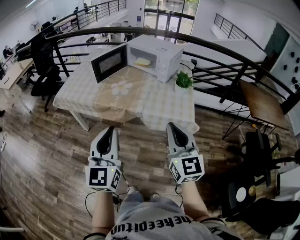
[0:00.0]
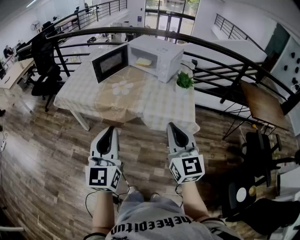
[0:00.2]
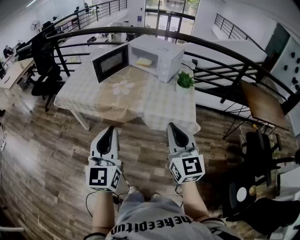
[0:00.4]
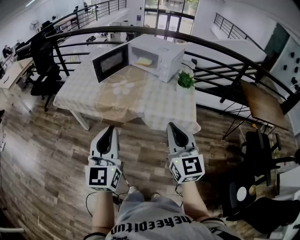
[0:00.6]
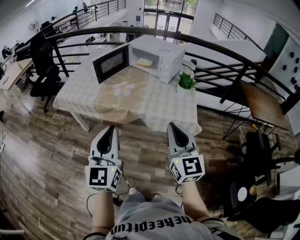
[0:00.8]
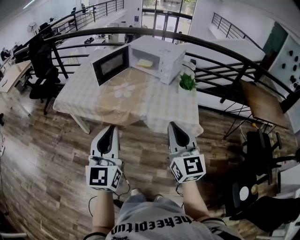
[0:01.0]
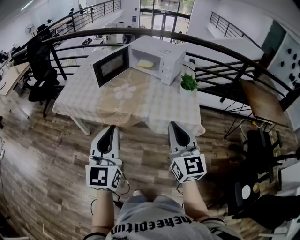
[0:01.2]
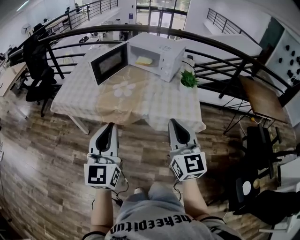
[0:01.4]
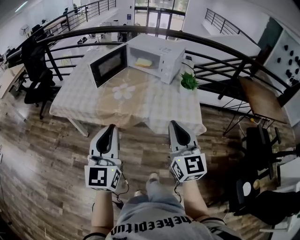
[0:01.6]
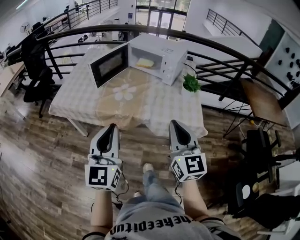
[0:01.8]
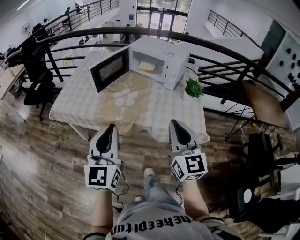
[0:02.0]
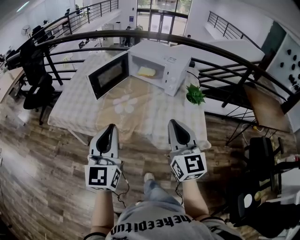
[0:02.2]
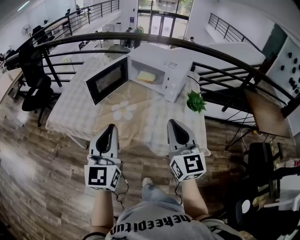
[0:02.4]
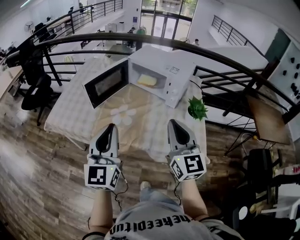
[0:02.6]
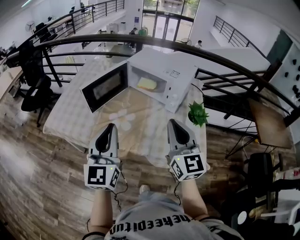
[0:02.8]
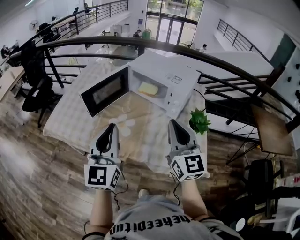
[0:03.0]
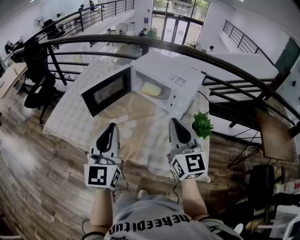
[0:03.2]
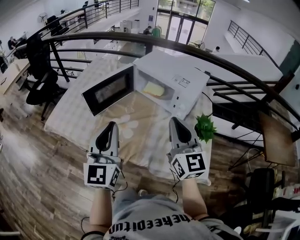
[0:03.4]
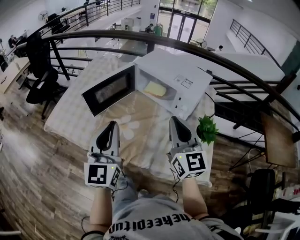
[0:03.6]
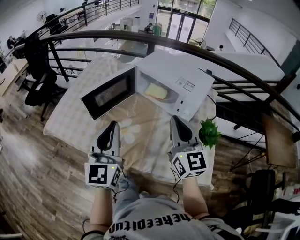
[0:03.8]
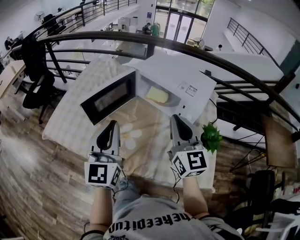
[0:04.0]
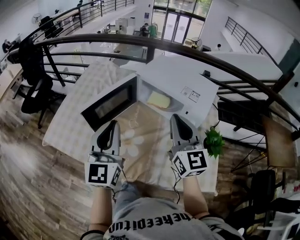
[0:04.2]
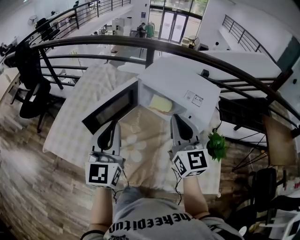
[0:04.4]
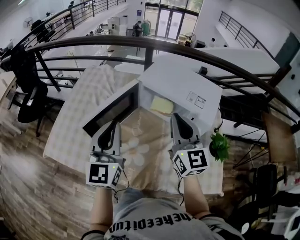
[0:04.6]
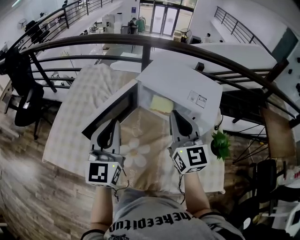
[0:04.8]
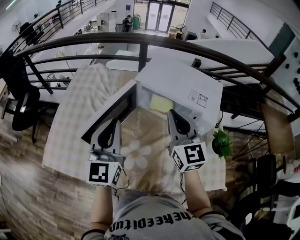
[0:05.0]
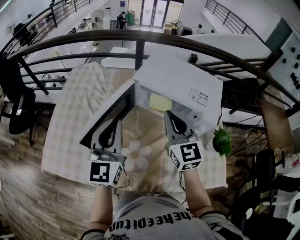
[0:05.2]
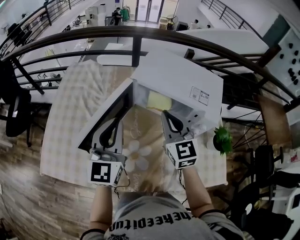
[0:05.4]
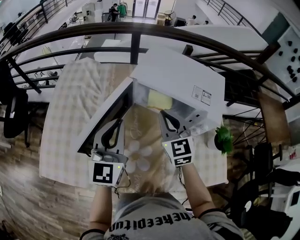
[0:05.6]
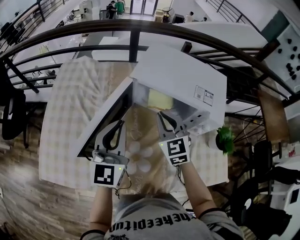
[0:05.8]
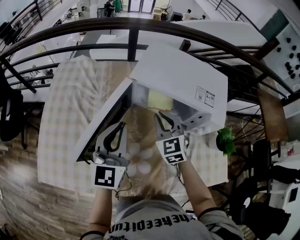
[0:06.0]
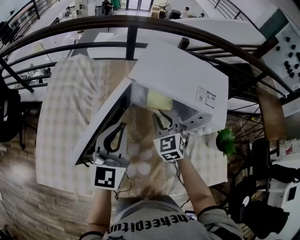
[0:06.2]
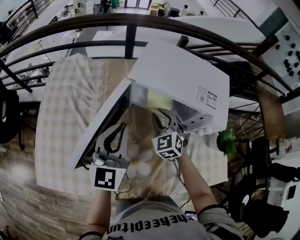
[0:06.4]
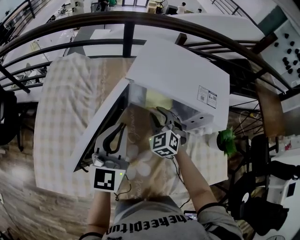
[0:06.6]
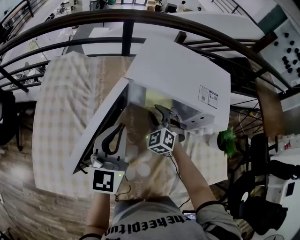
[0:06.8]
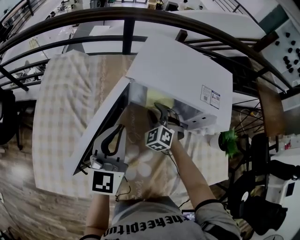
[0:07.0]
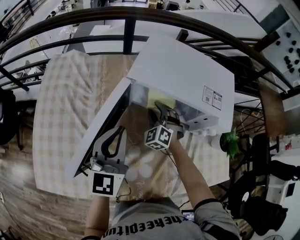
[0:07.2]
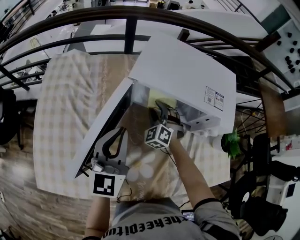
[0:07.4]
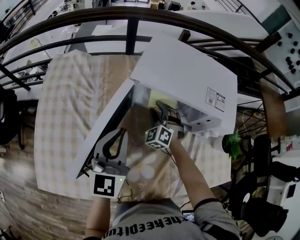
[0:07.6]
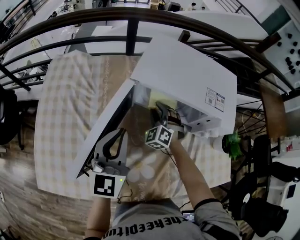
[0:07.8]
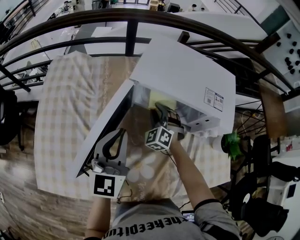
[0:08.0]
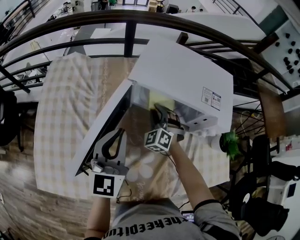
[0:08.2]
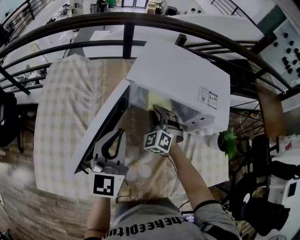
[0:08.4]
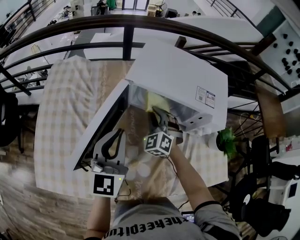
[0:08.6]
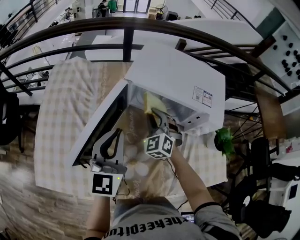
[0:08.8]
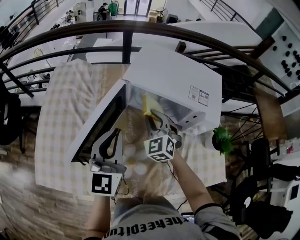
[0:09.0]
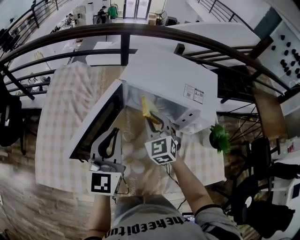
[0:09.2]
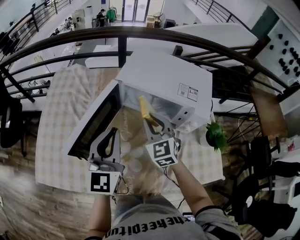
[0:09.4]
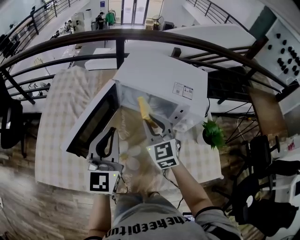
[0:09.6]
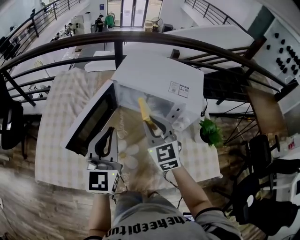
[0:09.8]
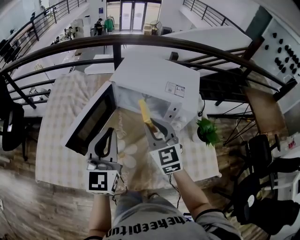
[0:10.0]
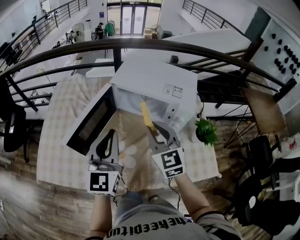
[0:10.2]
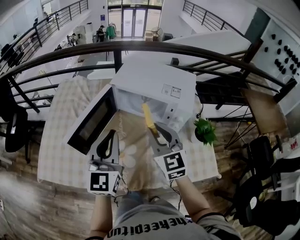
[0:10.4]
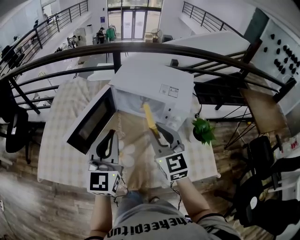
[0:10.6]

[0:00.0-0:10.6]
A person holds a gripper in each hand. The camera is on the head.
0:00.0 to 0:01.6: Both grippers travel together forward and to the left, roughly 10 cm.
0:01.6 to 0:03.0: Both grippers move forward, about 30 cm.
0:03.0 to 0:04.6: The two grippers go approximately 25 cm forward.
0:04.6 to 0:06.0: The left gripper heads forward and downward, covering some 15 cm, while the right gripper shifts some 20 cm downward and forward, and changes its angle by some 40 degrees.
0:06.0 to 0:07.6: The right gripper shifts about 15 cm downward and forward, changes its angle by about 30 degrees, and opens up.
0:07.6 to 0:09.0: The left gripper ends up about 5 cm from where it was. Meanwhile the right gripper goes approximately 15 cm upward and backward, and closes up.
0:09.0 to 0:10.6: The right gripper goes about 25 cm backward, upward and to the right, and changes its angle by roughly 30 degrees. The left gripper moves backward, upward and to the right, about 15 cm.

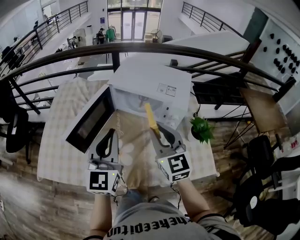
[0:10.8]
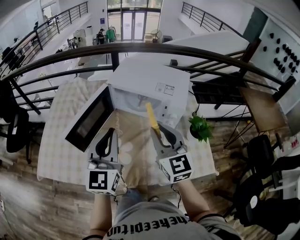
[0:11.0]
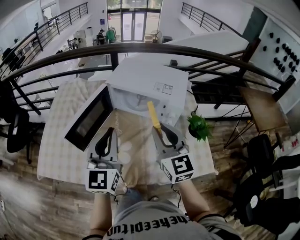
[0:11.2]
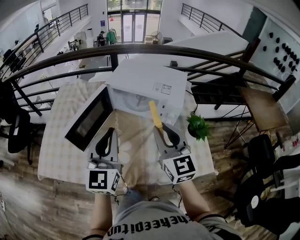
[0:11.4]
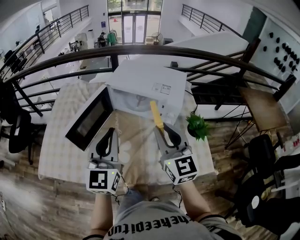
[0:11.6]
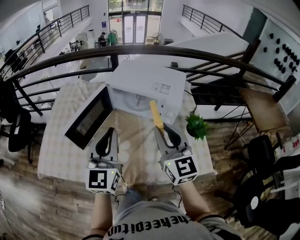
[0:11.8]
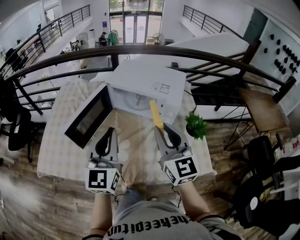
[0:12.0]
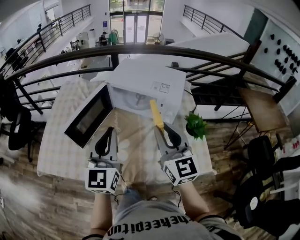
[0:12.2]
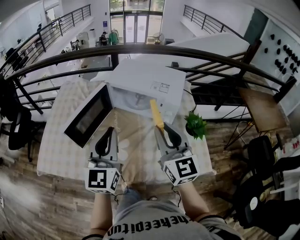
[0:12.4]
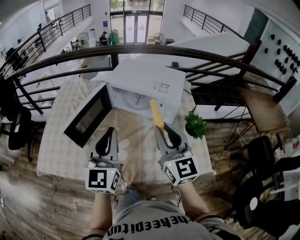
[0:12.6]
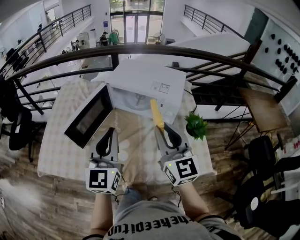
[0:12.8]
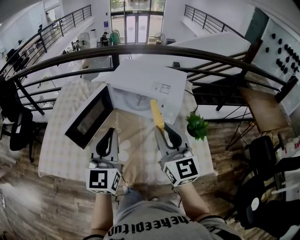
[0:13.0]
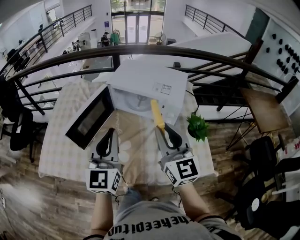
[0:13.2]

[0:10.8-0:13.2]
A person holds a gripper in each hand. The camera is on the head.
0:10.8 to 0:12.0: The right gripper heads backward, covering some 5 cm.
0:12.0 to 0:13.2: The two grippers keep their place.

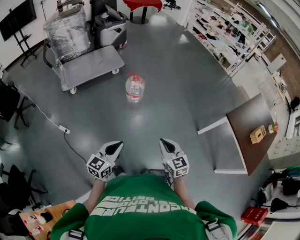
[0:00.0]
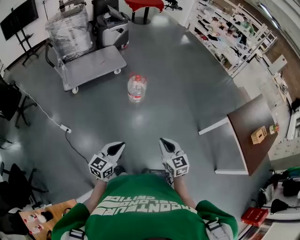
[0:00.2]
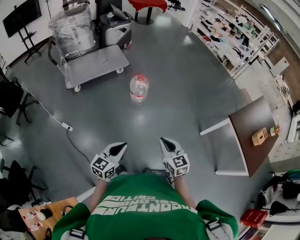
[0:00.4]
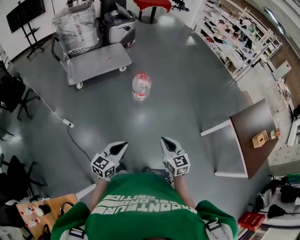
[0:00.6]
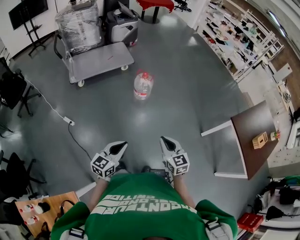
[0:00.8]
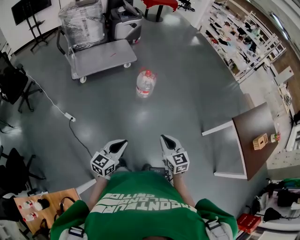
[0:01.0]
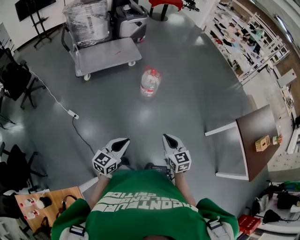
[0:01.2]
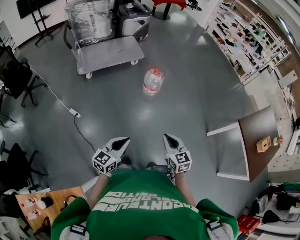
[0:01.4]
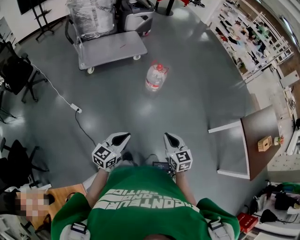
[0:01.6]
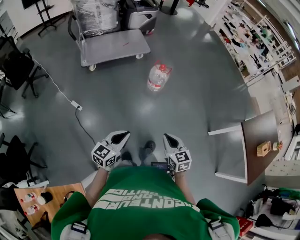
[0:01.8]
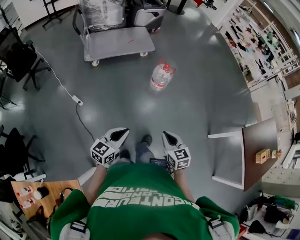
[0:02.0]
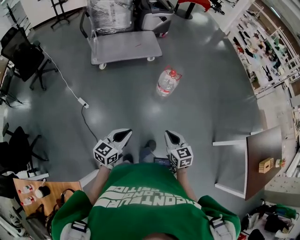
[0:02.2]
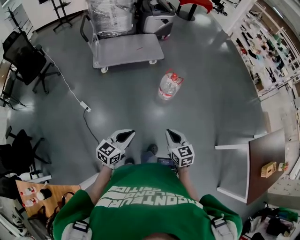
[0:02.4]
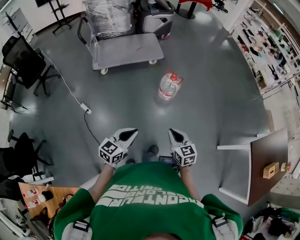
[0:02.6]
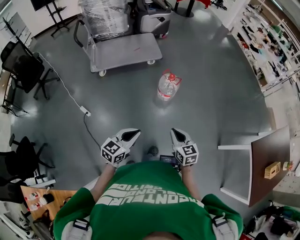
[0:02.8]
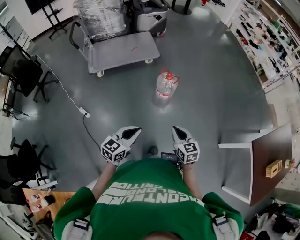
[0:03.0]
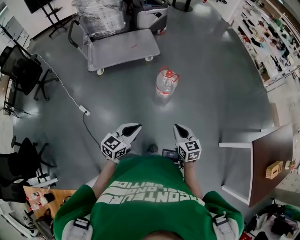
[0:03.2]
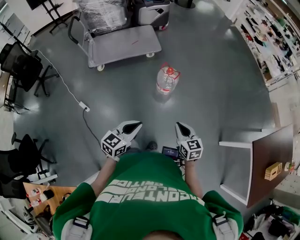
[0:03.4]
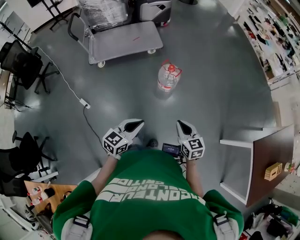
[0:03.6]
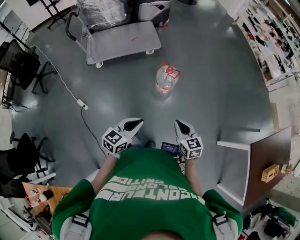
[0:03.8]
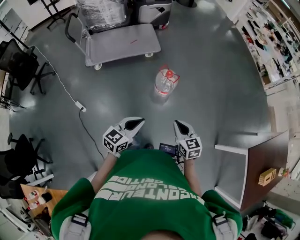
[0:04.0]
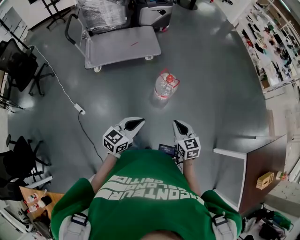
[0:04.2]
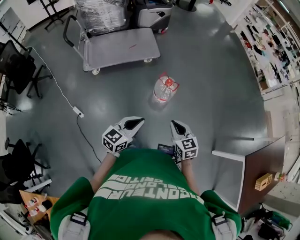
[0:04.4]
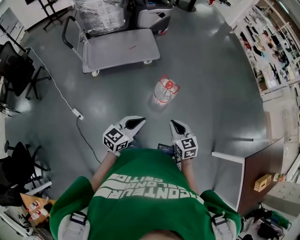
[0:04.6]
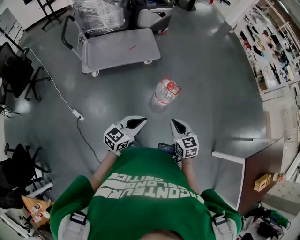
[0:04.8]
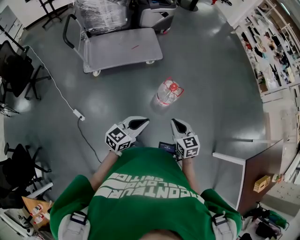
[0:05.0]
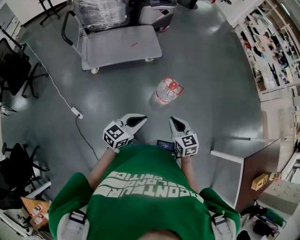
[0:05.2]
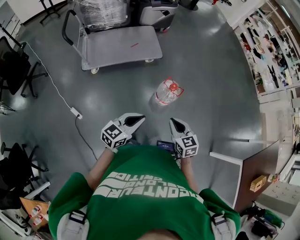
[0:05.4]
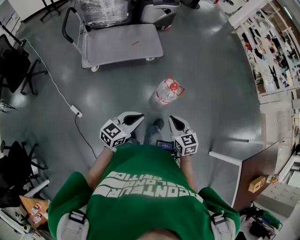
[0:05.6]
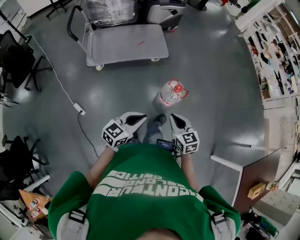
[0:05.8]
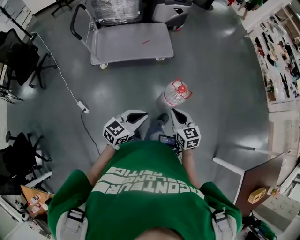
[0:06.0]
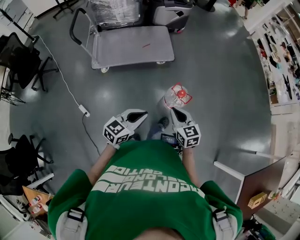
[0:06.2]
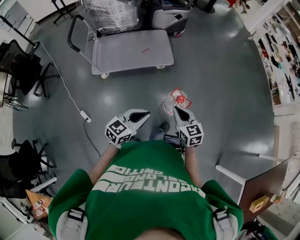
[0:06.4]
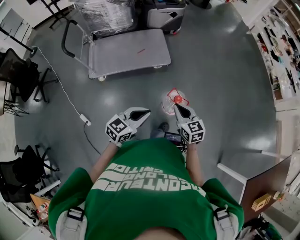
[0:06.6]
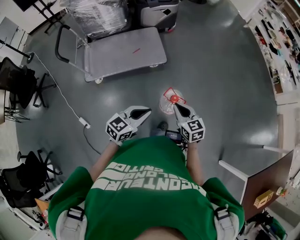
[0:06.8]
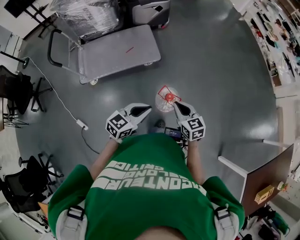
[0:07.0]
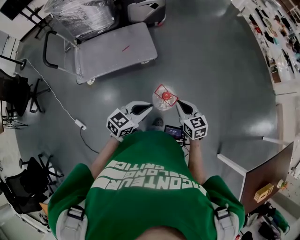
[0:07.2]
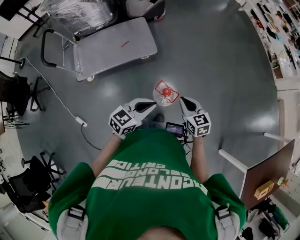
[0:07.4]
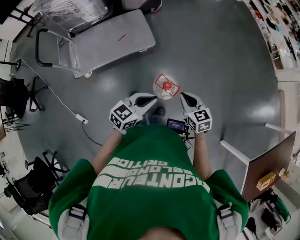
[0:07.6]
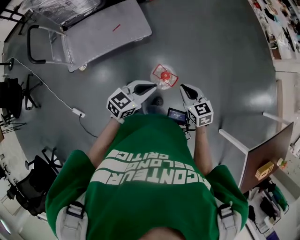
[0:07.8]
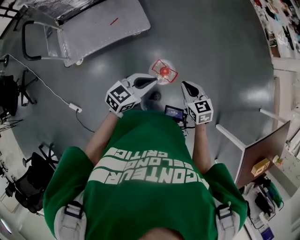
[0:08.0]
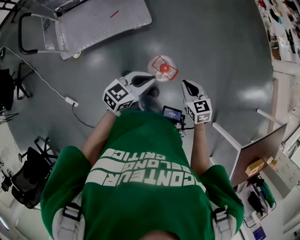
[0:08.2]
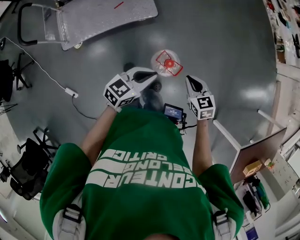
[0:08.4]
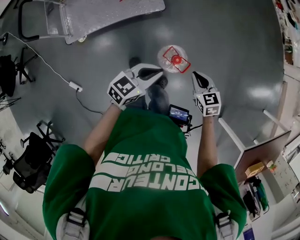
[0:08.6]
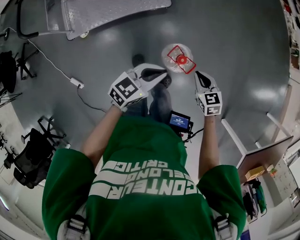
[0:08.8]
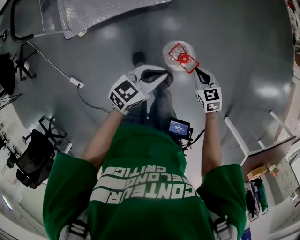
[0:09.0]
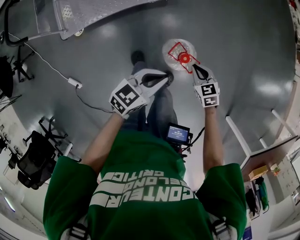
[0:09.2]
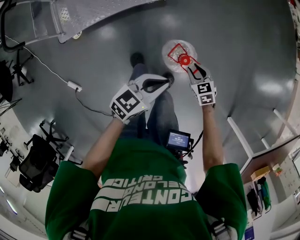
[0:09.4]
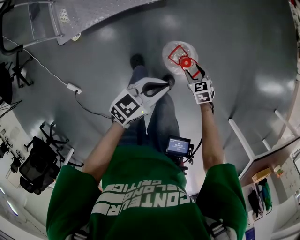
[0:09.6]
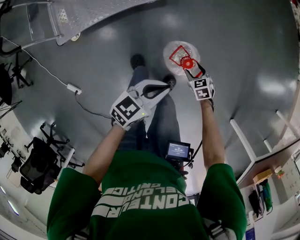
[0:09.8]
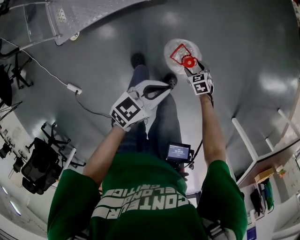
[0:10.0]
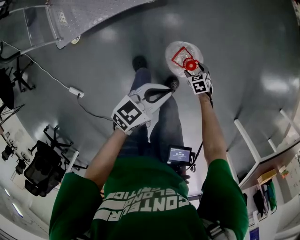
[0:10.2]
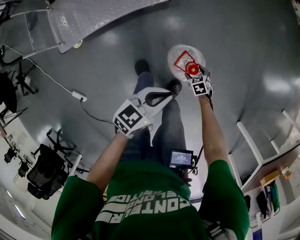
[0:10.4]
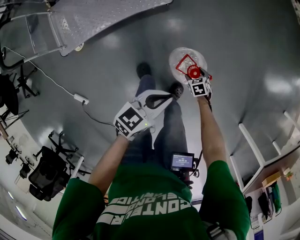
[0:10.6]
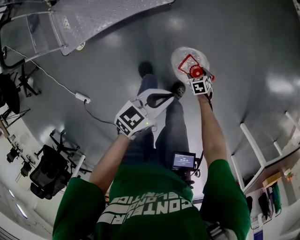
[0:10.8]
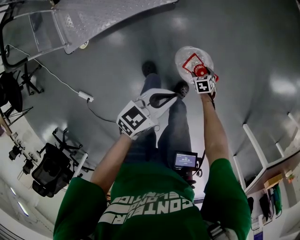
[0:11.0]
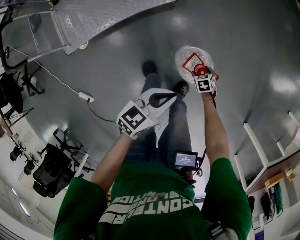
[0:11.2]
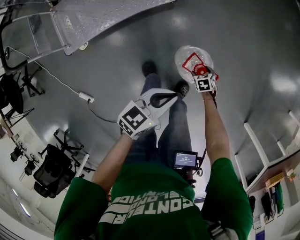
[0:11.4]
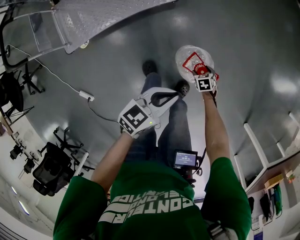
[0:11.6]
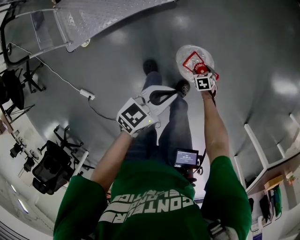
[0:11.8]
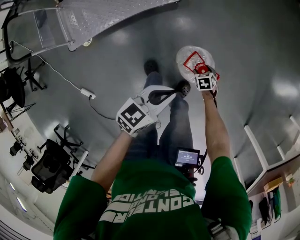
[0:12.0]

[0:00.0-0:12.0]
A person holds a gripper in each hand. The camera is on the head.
0:00.0 to 0:01.6: The two grippers go about 10 cm to the left.
0:01.6 to 0:03.0: Both grippers travel together forward, approximately 20 cm.
0:03.0 to 0:04.4: The two grippers go some 15 cm forward.
0:04.4 to 0:06.0: Both grippers travel together forward and to the left, about 15 cm.
0:06.0 to 0:07.6: The grippers both shift forward and to the right by roughly 25 cm.
0:07.6 to 0:09.0: The right gripper is displaced downward by roughly 20 cm. The left gripper heads downward and forward, covering about 15 cm.
0:09.0 to 0:10.4: The right gripper travels downward by roughly 30 cm, rotates about 20 degrees, and opens its fingers. Meanwhile the left gripper heads downward, covering about 10 cm.
0:10.4 to 0:12.0: The grippers make only small movements.
